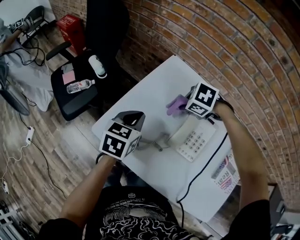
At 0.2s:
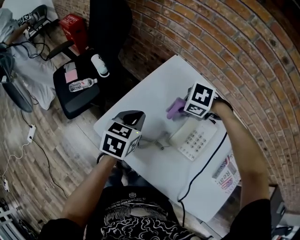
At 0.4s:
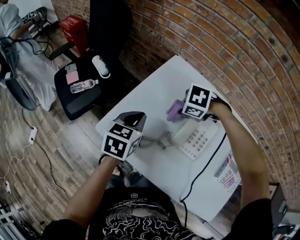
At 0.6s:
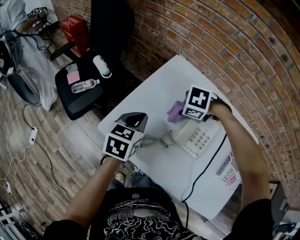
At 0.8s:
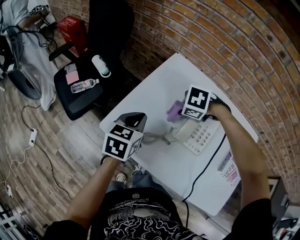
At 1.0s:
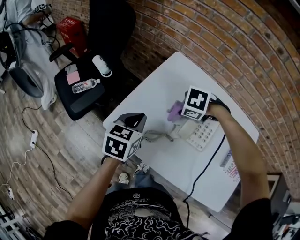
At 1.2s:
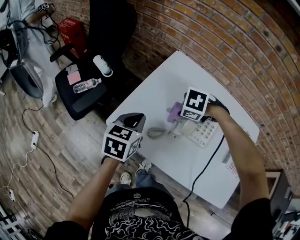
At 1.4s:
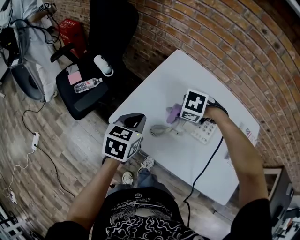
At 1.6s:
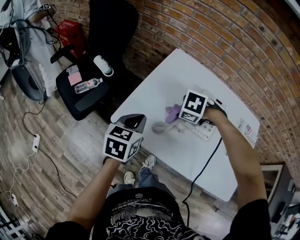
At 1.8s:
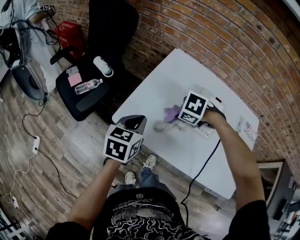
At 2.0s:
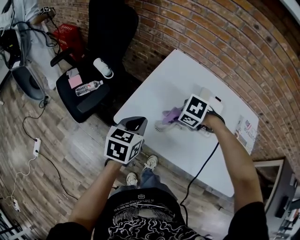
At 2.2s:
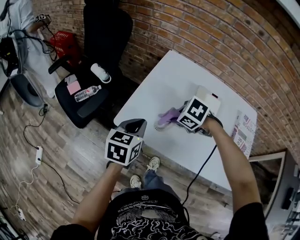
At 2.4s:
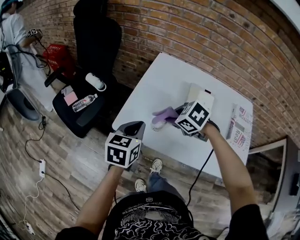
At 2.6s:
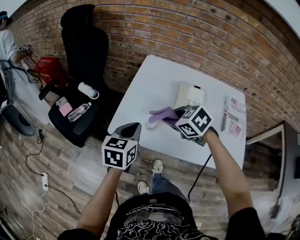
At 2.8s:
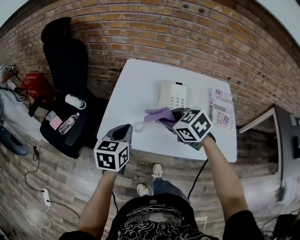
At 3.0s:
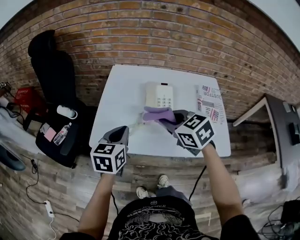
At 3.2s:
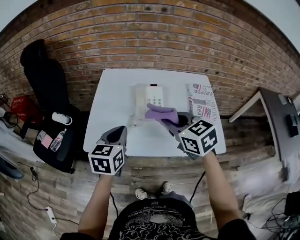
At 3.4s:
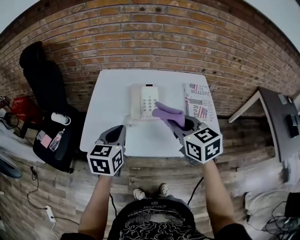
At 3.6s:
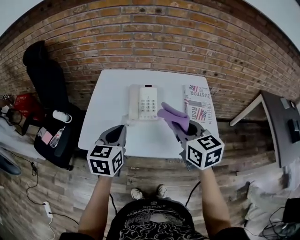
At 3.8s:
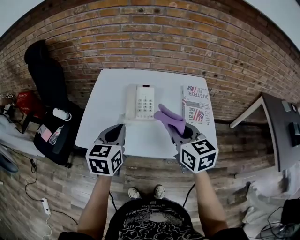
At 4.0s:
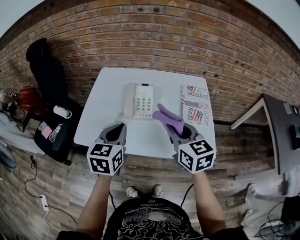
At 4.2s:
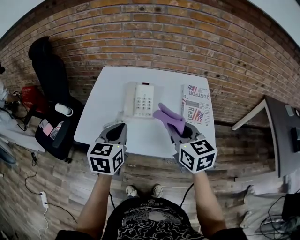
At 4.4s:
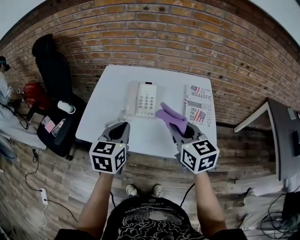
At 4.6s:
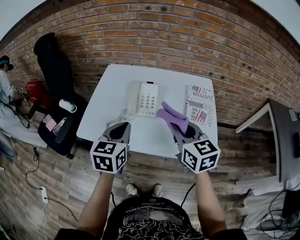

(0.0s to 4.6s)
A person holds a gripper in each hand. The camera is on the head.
0.0s - 1.6s: The right gripper moves roughly 15 cm; the left gripper changes place by about 10 cm.
1.6s - 3.0s: The right gripper travels upward by approximately 15 cm, and tips its fingers upward by some 50 degrees, while the left gripper moves approximately 10 cm.
3.0s - 4.6s: The two grippers go some 15 cm to the right. The right gripper changes its angle by roughly 30 degrees.

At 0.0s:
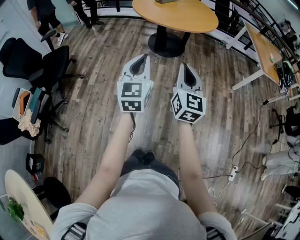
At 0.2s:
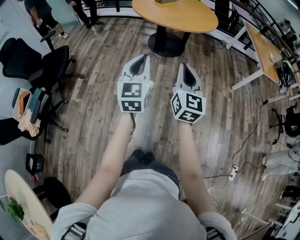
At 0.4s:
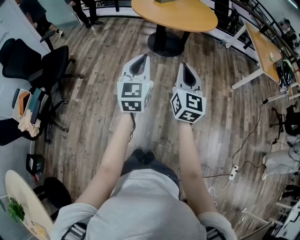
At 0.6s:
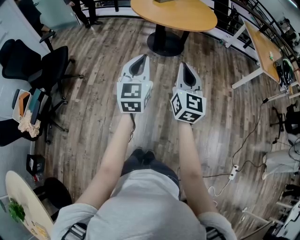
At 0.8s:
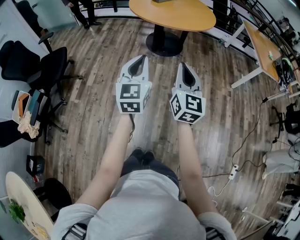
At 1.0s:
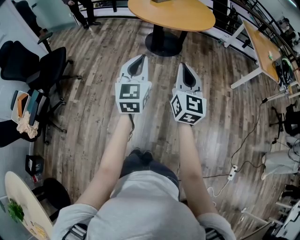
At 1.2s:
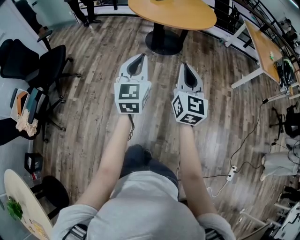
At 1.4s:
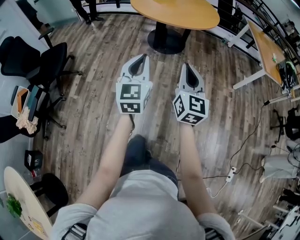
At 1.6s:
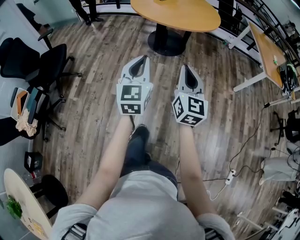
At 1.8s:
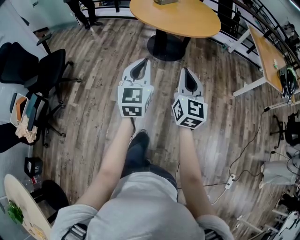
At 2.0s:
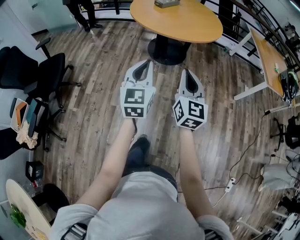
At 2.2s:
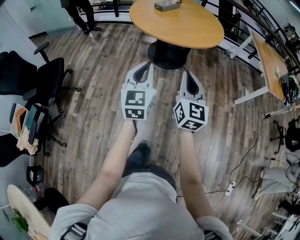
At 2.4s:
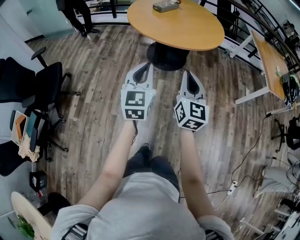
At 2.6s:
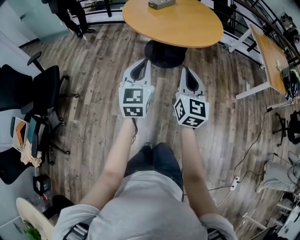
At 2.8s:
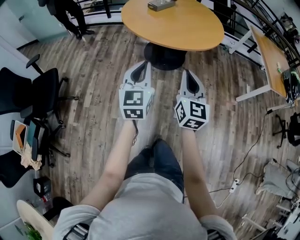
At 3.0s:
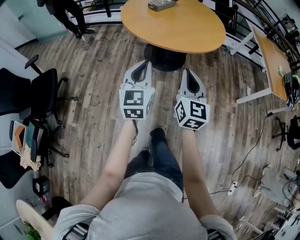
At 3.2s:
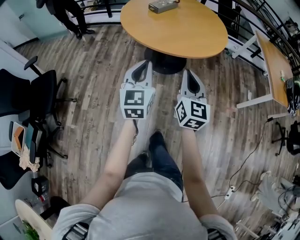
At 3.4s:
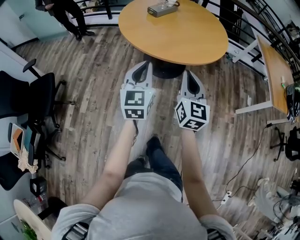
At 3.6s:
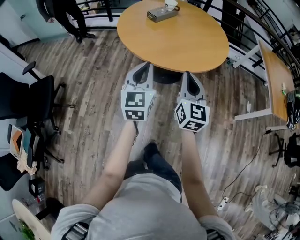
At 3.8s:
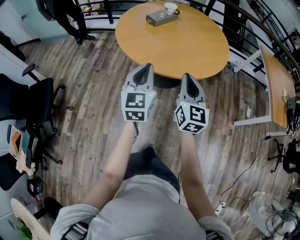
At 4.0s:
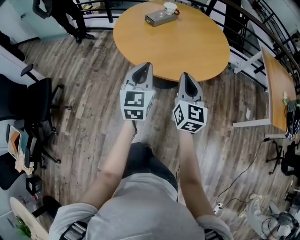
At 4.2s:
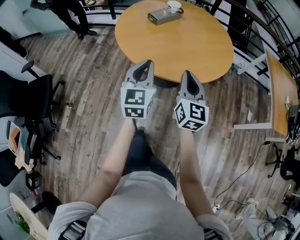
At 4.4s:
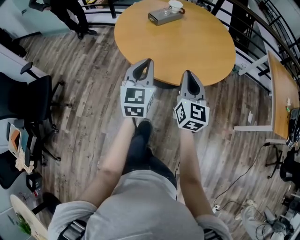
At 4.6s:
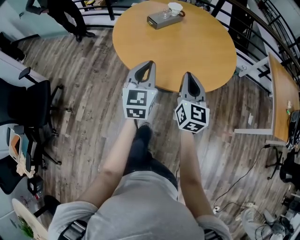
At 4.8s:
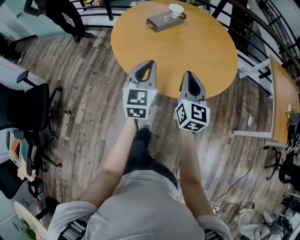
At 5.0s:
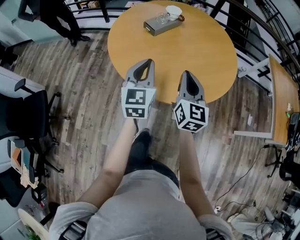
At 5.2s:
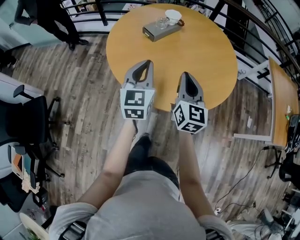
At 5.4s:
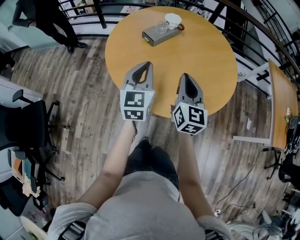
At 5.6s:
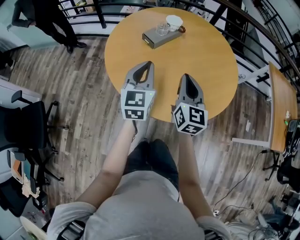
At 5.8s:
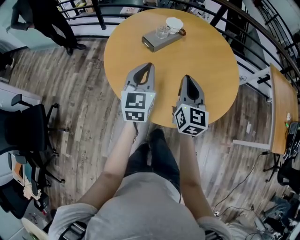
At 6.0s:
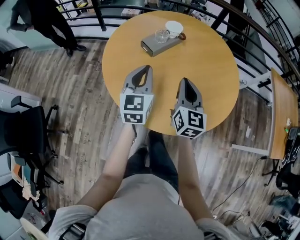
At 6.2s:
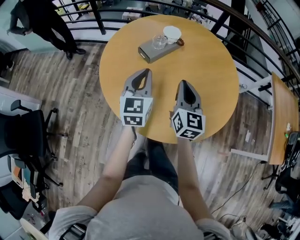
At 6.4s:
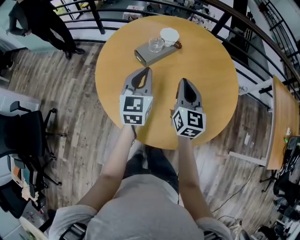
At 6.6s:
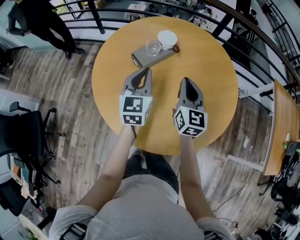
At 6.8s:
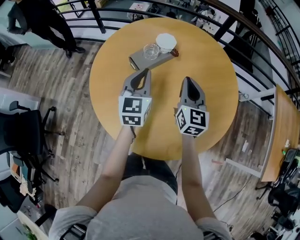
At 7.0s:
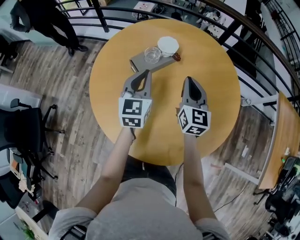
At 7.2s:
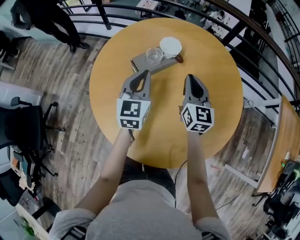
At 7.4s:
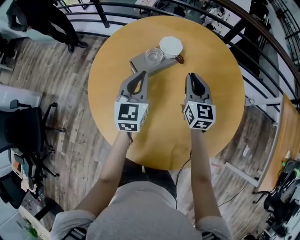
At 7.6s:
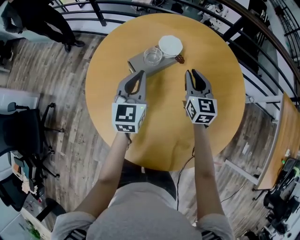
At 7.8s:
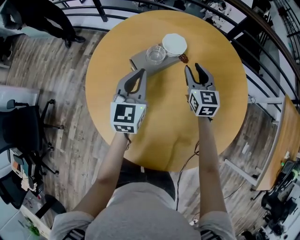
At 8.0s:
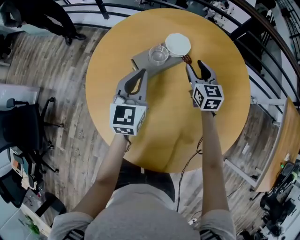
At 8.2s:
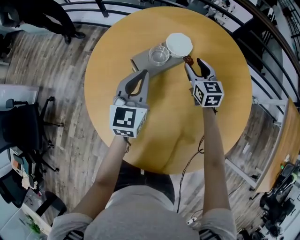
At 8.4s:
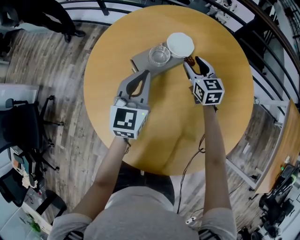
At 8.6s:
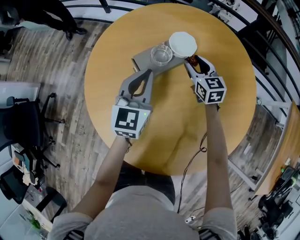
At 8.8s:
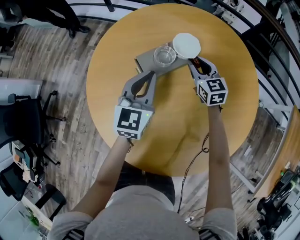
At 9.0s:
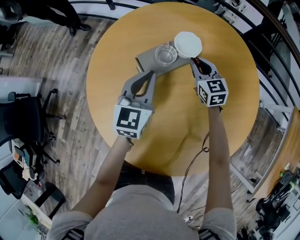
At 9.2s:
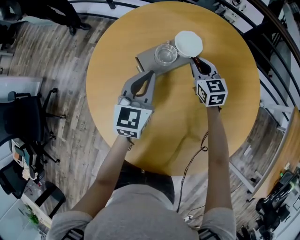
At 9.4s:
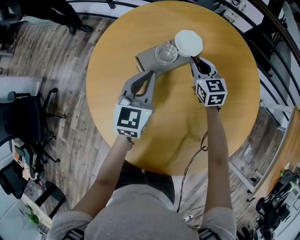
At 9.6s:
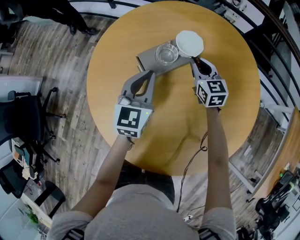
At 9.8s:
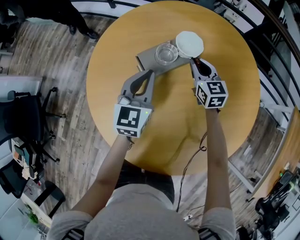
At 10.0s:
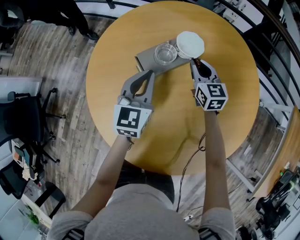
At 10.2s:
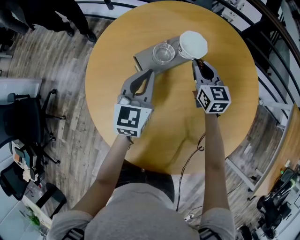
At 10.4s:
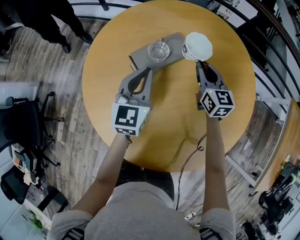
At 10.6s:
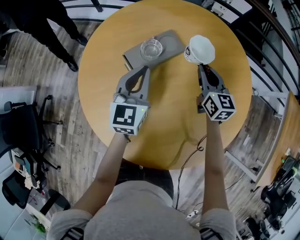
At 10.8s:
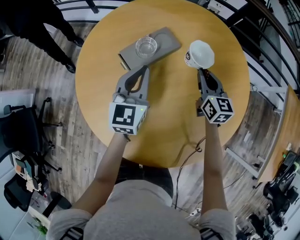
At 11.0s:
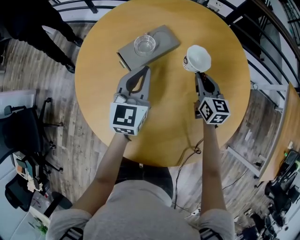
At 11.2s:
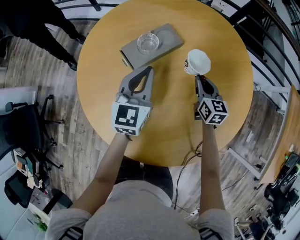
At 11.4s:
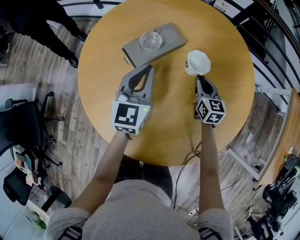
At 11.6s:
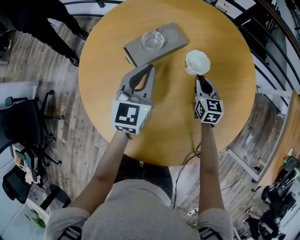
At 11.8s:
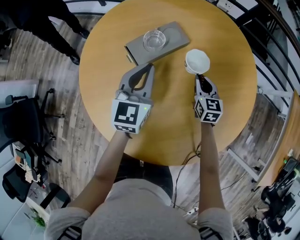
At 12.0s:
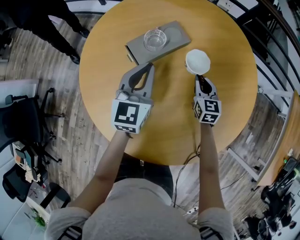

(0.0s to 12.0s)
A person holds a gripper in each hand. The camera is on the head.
0.0s - 1.6s: The left gripper ends up about 5 cm from where it was, while the right gripper ends up roughly 5 cm from where it was.
1.6s - 3.0s: The grippers both shift forward by approximately 25 cm.
3.0s - 4.4s: The grippers both shift forward by about 25 cm.
4.4s - 6.0s: The two grippers go roughly 25 cm forward.
6.0s - 7.6s: Both grippers travel together forward, approximately 25 cm.
7.6s - 9.0s: The right gripper travels forward and downward by approximately 15 cm, rotates about 20 degrees, and opens, then closes once more.
9.0s - 10.4s: The right gripper ends up approximately 10 cm from where it was.
10.4s - 12.0s: The right gripper shifts approximately 15 cm downward and backward.

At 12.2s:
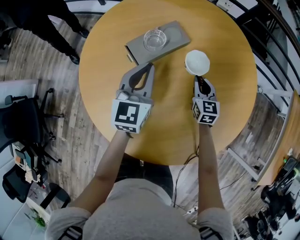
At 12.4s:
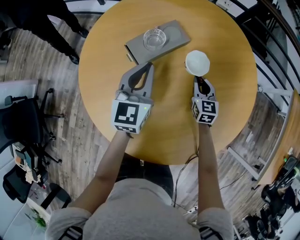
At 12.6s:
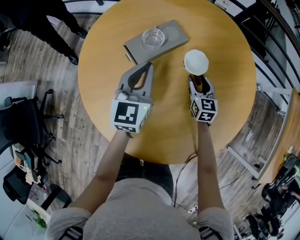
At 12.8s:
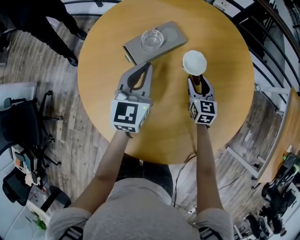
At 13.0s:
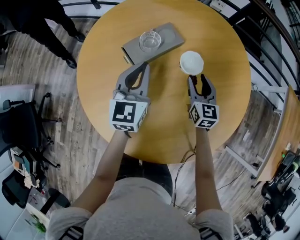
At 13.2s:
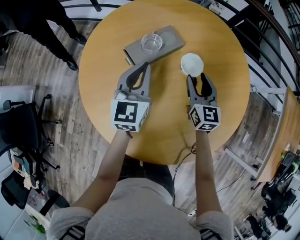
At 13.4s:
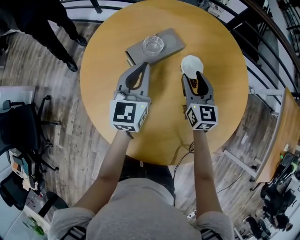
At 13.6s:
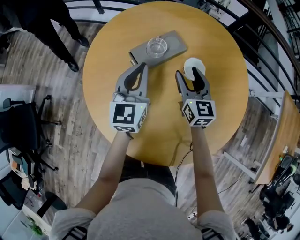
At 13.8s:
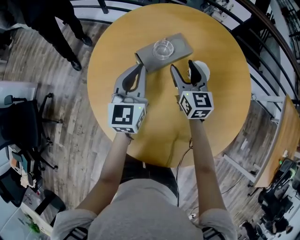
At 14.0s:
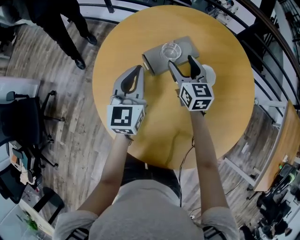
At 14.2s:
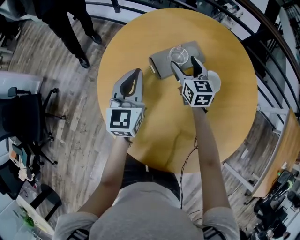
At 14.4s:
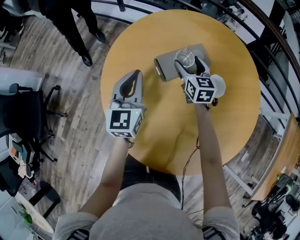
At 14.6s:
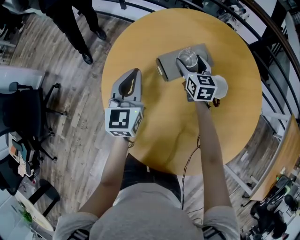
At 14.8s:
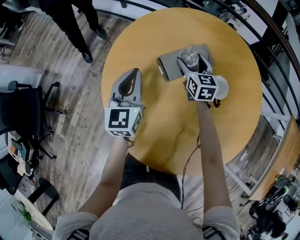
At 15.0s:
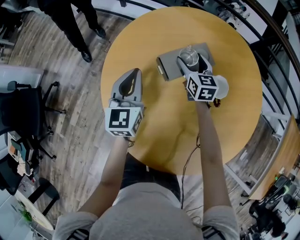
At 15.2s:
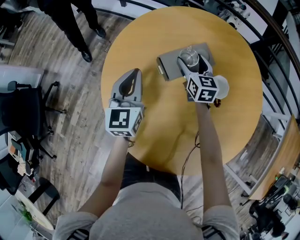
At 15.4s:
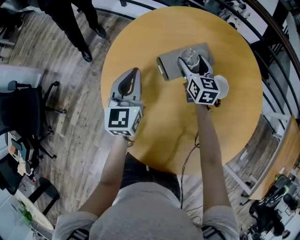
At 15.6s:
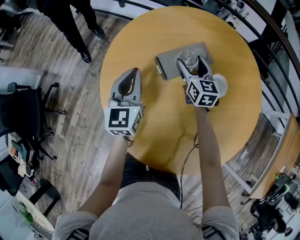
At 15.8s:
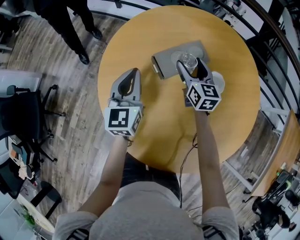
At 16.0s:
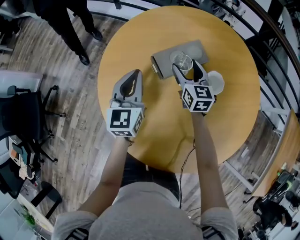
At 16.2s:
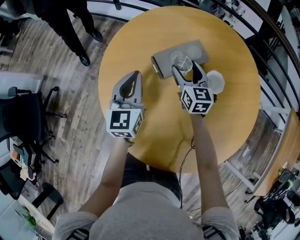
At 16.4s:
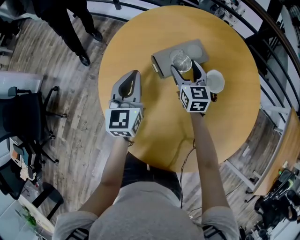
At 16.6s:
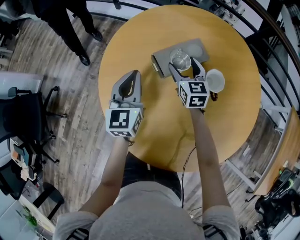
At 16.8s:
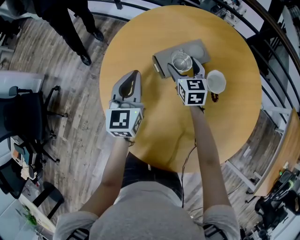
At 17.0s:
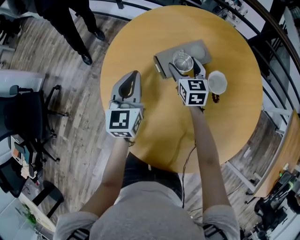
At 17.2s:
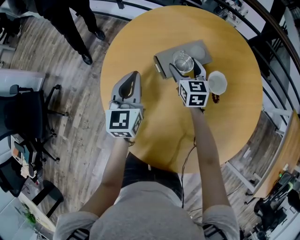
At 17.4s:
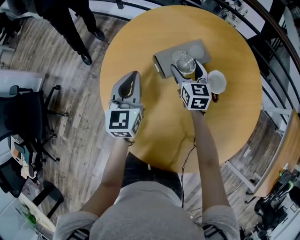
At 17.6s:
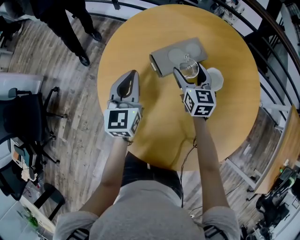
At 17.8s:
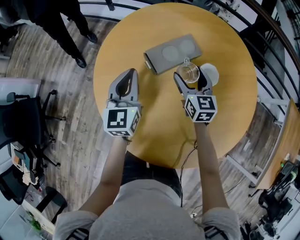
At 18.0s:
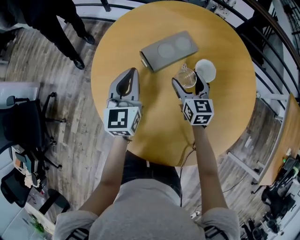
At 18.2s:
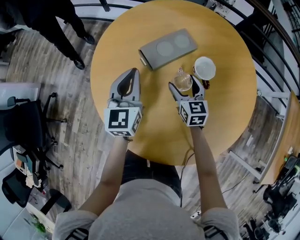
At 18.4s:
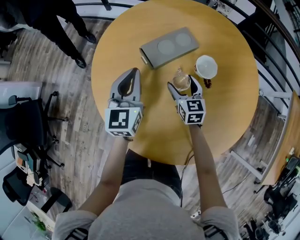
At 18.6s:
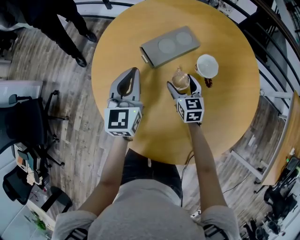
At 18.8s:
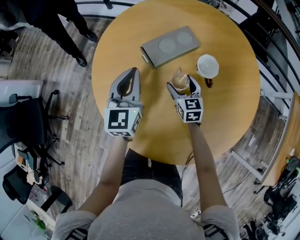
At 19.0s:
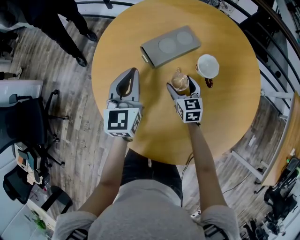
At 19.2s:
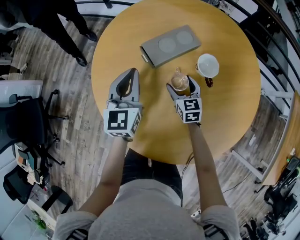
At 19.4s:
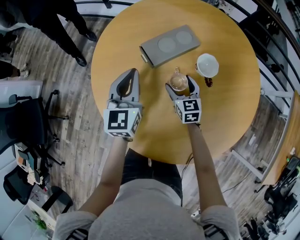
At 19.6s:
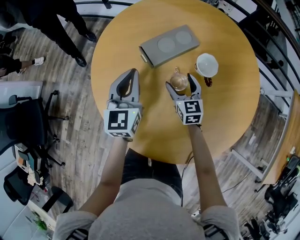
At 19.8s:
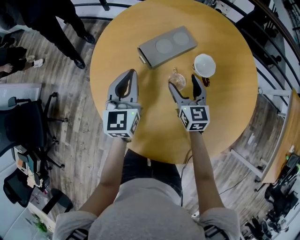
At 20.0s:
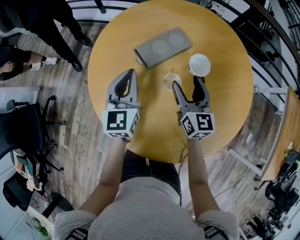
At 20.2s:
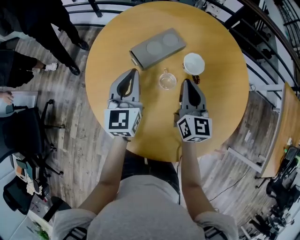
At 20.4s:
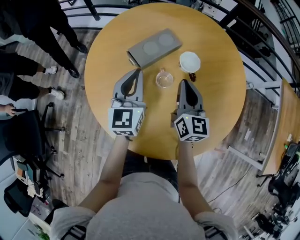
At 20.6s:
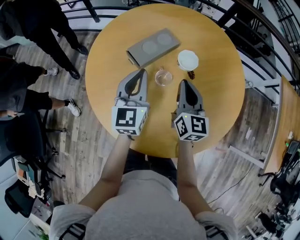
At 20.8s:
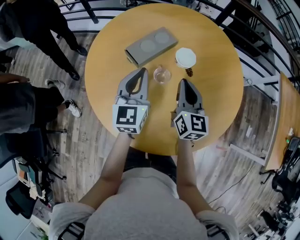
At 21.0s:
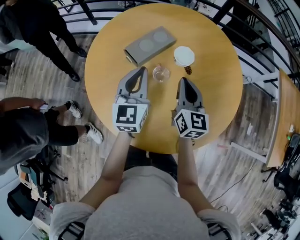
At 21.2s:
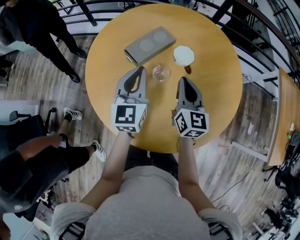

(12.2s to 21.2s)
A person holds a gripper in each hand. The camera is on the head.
12.2s - 13.8s: The right gripper moves upward and to the left, about 20 cm, and opens its fingers, while the left gripper travels to the left by some 5 cm.
13.8s - 15.2s: The left gripper shifts approximately 10 cm to the left, while the right gripper goes approximately 10 cm forward and downward.
15.2s - 16.6s: The grippers move only a little.
16.6s - 18.2s: The right gripper is displaced backward by approximately 10 cm.
18.2s - 19.8s: The grippers stay close to where they were, moving slightly.
19.8s - 21.2s: The right gripper goes roughly 15 cm upward, backward and to the right, rotates some 20 degrees, and closes; the left gripper is displaced to the right and upward by about 10 cm.
